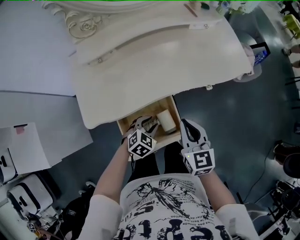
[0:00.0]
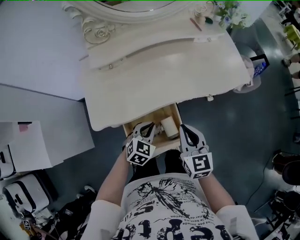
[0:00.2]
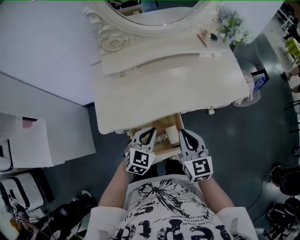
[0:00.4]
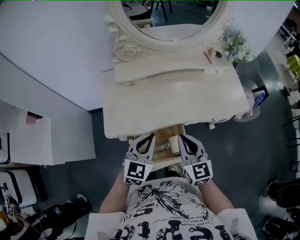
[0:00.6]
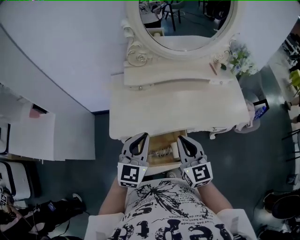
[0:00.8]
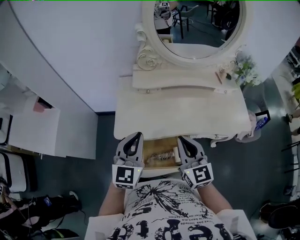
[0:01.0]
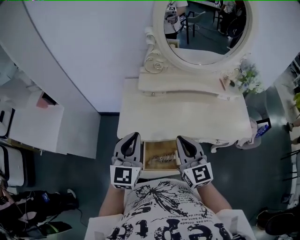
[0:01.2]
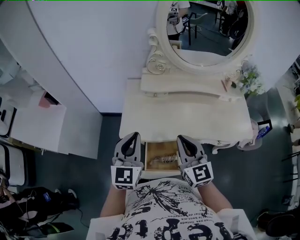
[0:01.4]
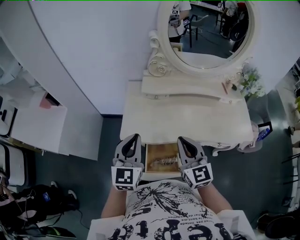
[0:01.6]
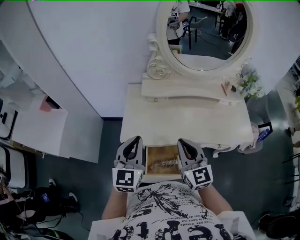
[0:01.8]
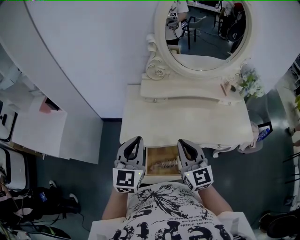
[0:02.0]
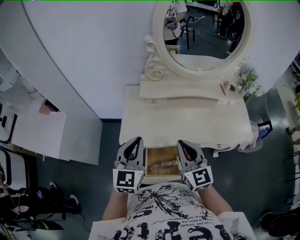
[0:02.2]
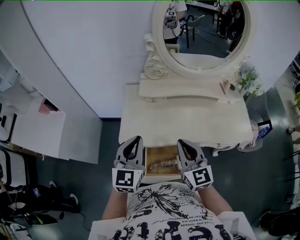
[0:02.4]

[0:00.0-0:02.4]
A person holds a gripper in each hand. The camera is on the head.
0:00.0 to 0:01.2: The right gripper moves upward, some 20 cm, and turns by some 30 degrees, while the left gripper heads upward, covering roughly 35 cm, points its fingers some 50 degrees further upward, and closes.
0:01.2 to 0:02.4: Both grippers stay about where they are.

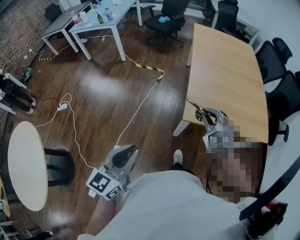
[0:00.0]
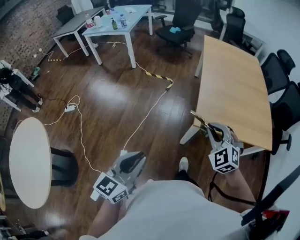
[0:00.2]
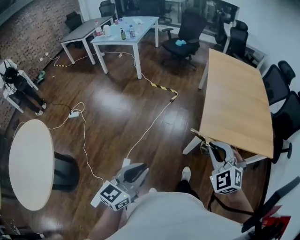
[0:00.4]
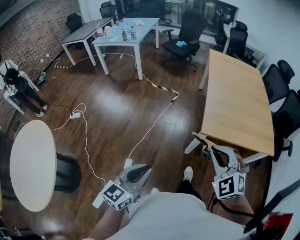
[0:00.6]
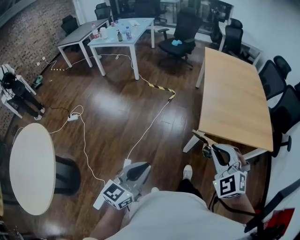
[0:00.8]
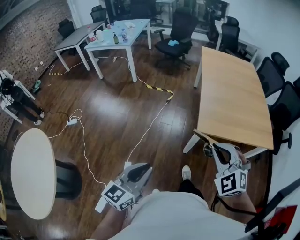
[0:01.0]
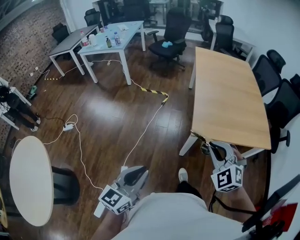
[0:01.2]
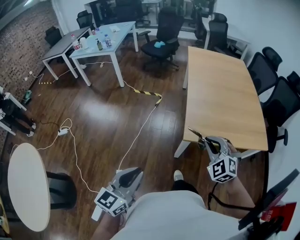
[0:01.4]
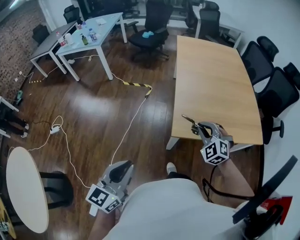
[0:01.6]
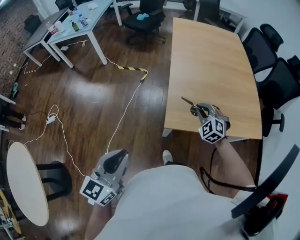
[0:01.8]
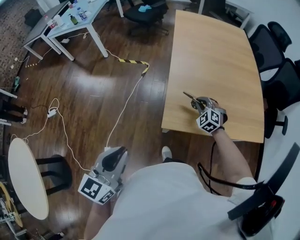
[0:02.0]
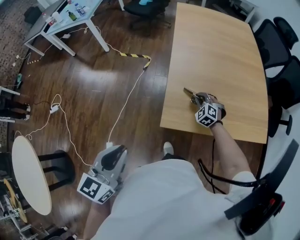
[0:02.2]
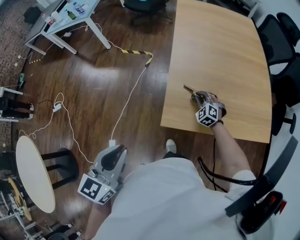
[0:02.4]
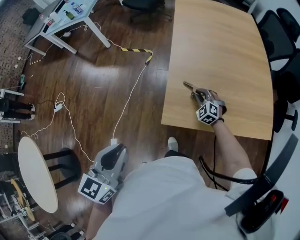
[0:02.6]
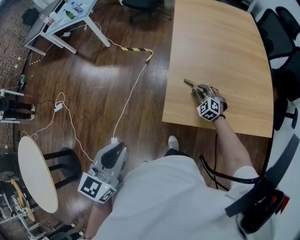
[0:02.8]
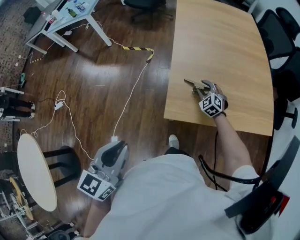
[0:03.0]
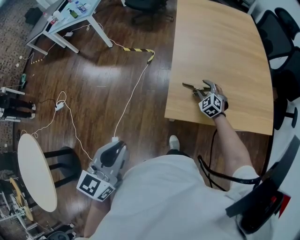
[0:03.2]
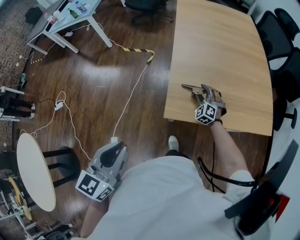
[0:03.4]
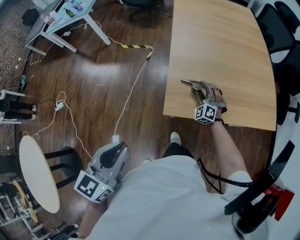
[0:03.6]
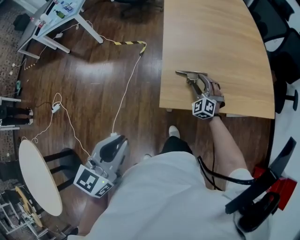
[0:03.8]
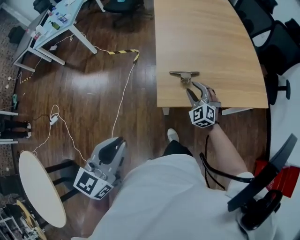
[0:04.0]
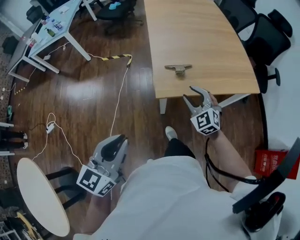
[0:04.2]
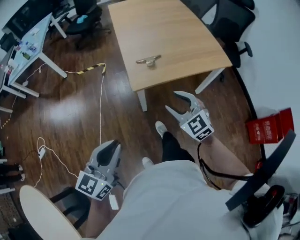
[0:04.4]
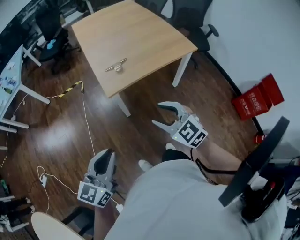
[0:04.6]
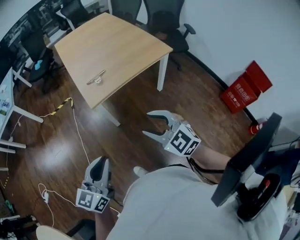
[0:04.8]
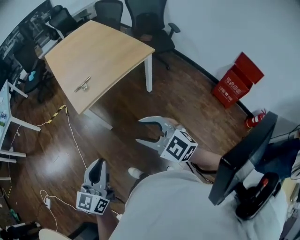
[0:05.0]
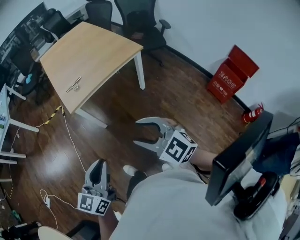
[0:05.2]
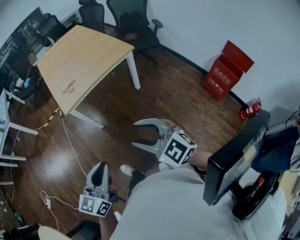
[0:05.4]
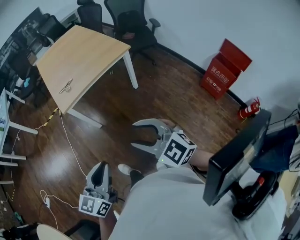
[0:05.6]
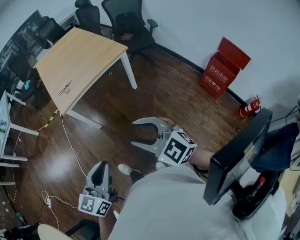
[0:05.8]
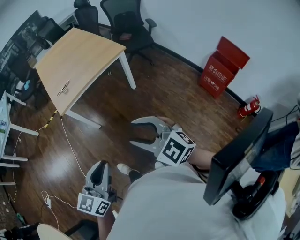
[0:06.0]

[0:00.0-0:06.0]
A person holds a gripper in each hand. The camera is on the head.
0:00.0 to 0:01.6: The left gripper goes backward and returns, about 10 cm each way; the right gripper travels backward and back again, about 20 cm each way.
0:01.6 to 0:03.0: The left gripper heads forward, covering roughly 5 cm; the right gripper shifts approximately 25 cm downward and forward, and opens.
0:03.0 to 0:04.4: The right gripper moves backward and upward, about 35 cm, and rotates approximately 30 degrees, while the left gripper goes about 10 cm backward, and turns by some 30 degrees.
0:04.4 to 0:06.0: The right gripper heads backward and to the right, covering about 35 cm; the left gripper is displaced to the right and backward by about 30 cm.

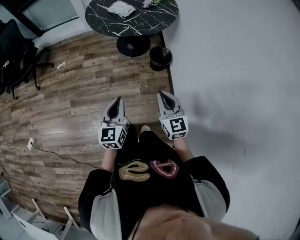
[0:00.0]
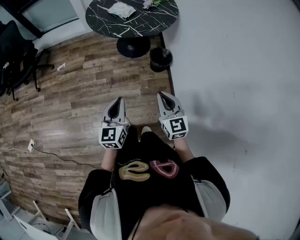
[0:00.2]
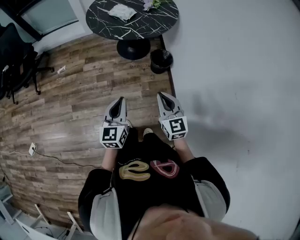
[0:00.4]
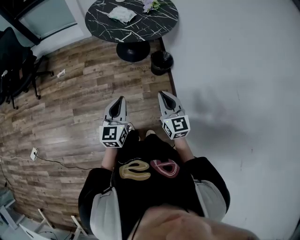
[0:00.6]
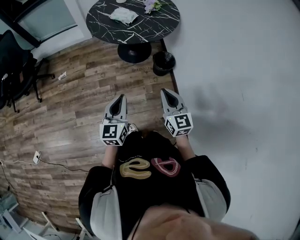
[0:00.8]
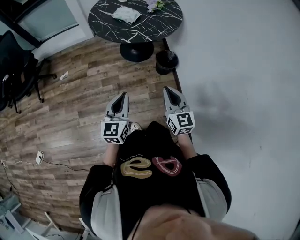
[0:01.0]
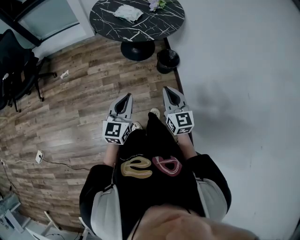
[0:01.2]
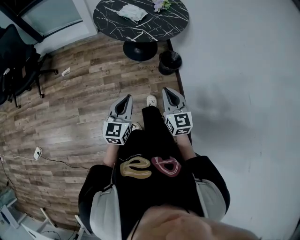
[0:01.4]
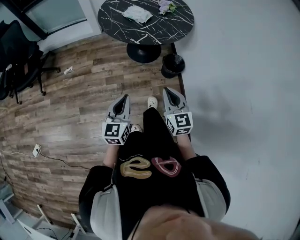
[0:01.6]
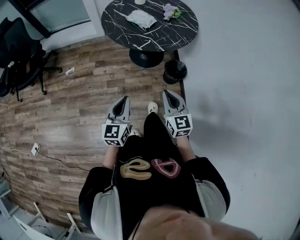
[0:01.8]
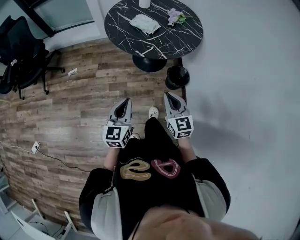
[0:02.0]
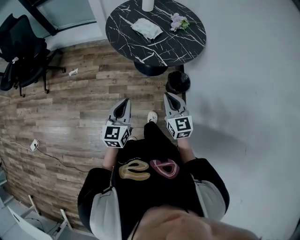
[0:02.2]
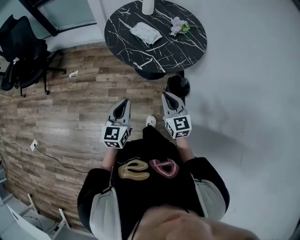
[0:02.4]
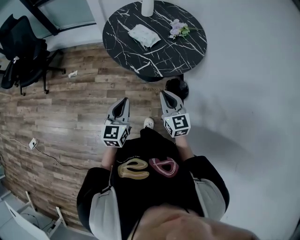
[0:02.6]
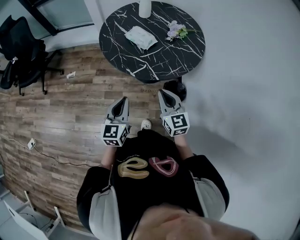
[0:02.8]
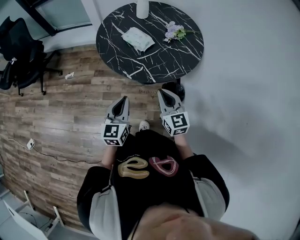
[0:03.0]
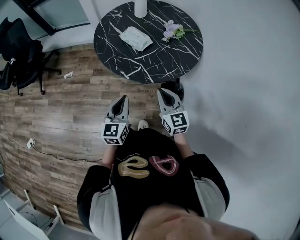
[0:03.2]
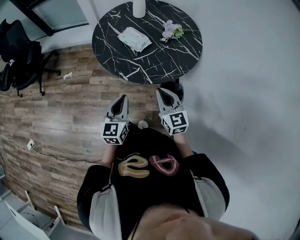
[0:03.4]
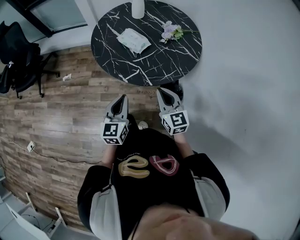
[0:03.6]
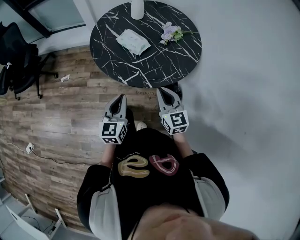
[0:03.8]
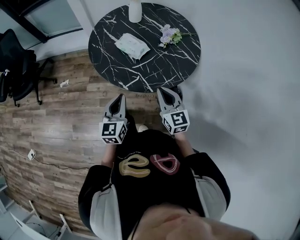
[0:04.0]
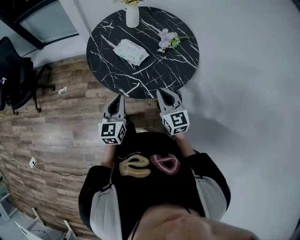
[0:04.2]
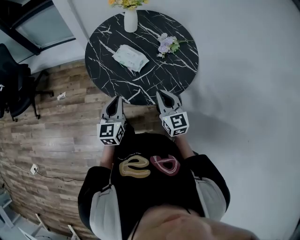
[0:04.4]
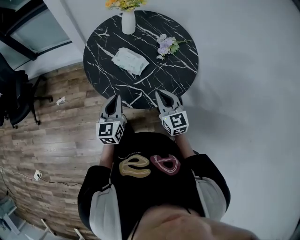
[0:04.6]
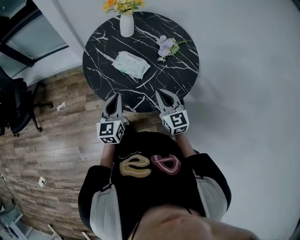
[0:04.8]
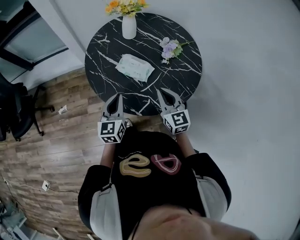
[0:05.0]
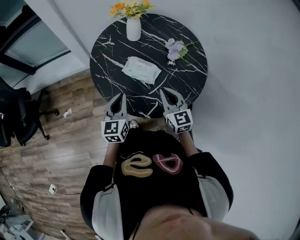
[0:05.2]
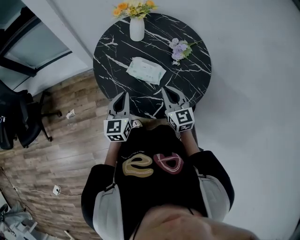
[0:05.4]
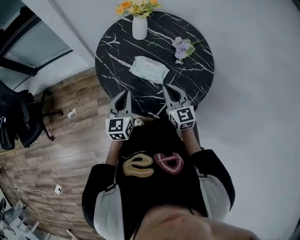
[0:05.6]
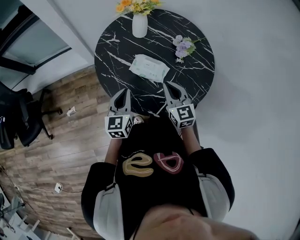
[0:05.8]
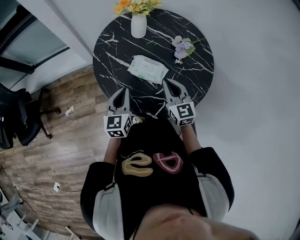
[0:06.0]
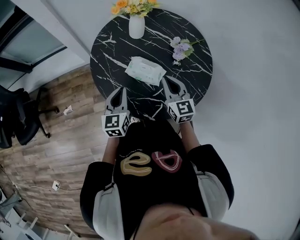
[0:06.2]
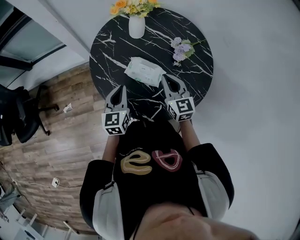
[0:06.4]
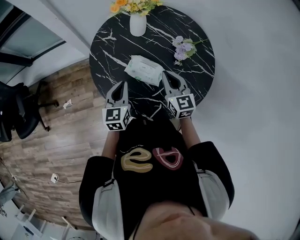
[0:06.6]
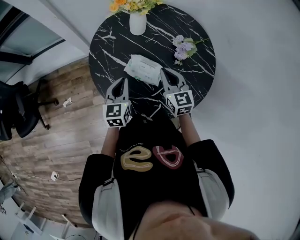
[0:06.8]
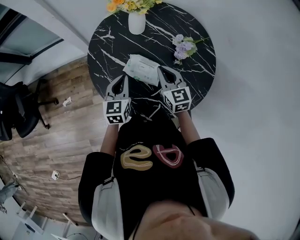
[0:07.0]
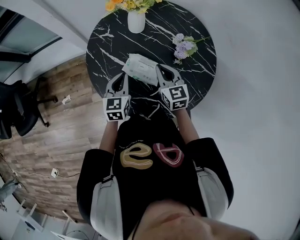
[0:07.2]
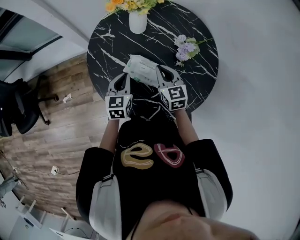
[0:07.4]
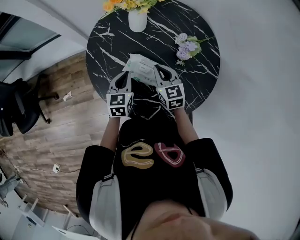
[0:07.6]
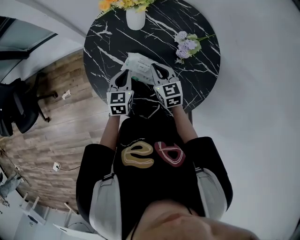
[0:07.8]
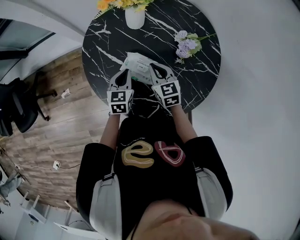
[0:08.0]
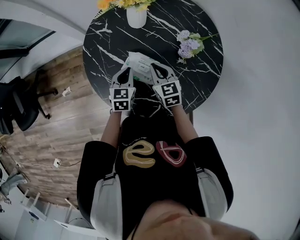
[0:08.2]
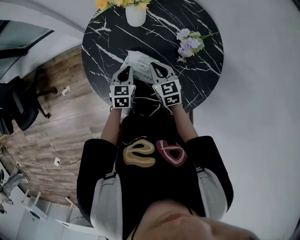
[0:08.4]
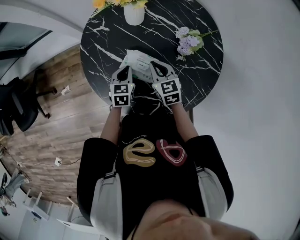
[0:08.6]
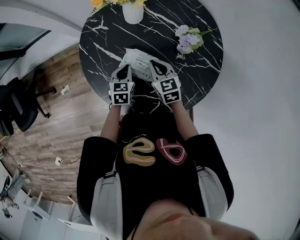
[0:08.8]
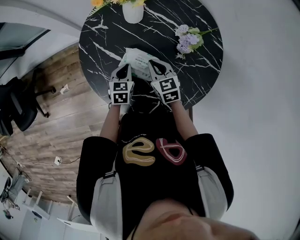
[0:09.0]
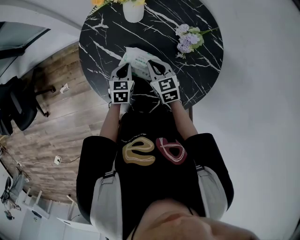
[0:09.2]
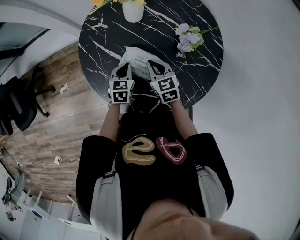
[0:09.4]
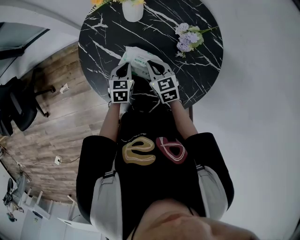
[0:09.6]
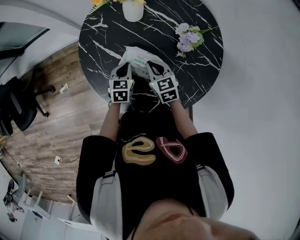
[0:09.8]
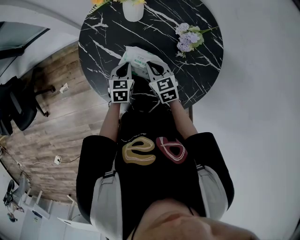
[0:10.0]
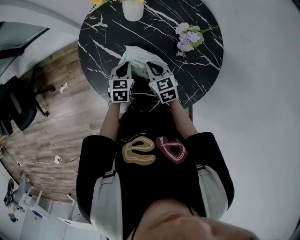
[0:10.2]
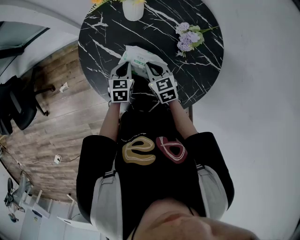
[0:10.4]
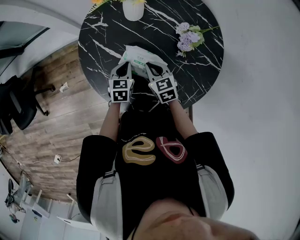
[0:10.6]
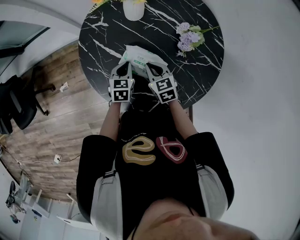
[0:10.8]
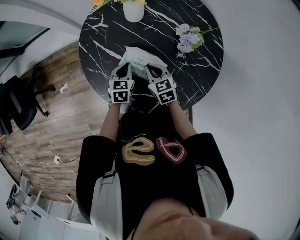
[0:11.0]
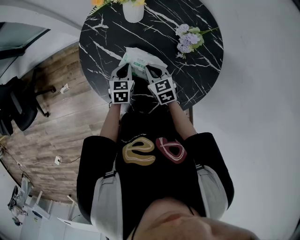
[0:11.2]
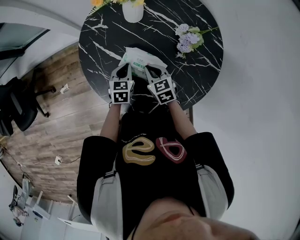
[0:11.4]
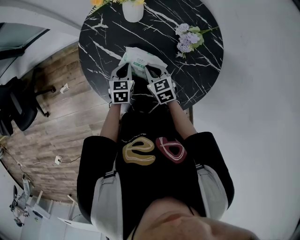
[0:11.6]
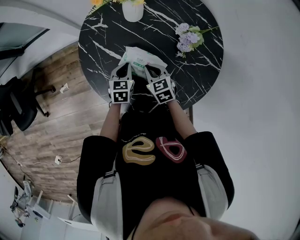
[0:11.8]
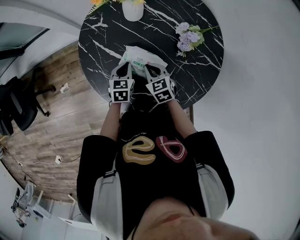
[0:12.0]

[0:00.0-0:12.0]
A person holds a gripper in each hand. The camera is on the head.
0:00.0 to 0:01.6: The grippers both shift to the left and forward by some 15 cm.
0:01.6 to 0:03.0: The left gripper is displaced forward and to the right by roughly 25 cm. The right gripper shifts roughly 25 cm forward.
0:03.0 to 0:04.4: The two grippers go about 15 cm forward.
0:04.4 to 0:06.0: The grippers both shift forward and to the left by roughly 20 cm.
0:06.0 to 0:07.6: The left gripper is displaced forward, downward and to the right by approximately 15 cm, while the right gripper heads forward and downward, covering about 15 cm.
0:07.6 to 0:09.0: The left gripper travels downward by some 10 cm, while the right gripper is displaced downward by roughly 5 cm.
0:09.0 to 0:12.0: There are only small adjustments of the grippers.

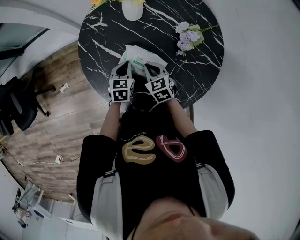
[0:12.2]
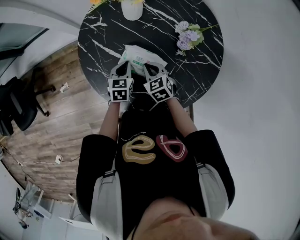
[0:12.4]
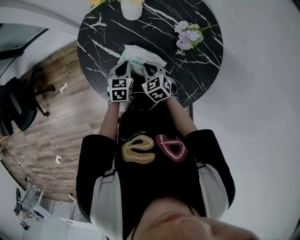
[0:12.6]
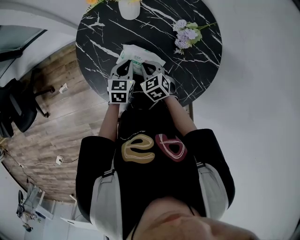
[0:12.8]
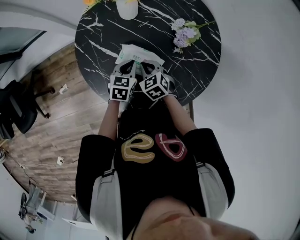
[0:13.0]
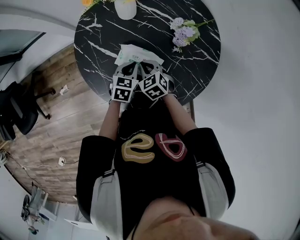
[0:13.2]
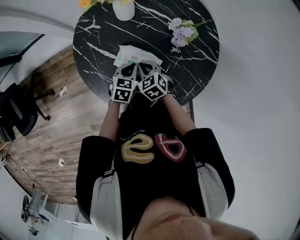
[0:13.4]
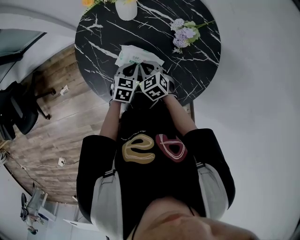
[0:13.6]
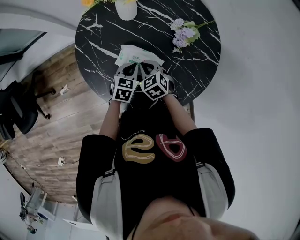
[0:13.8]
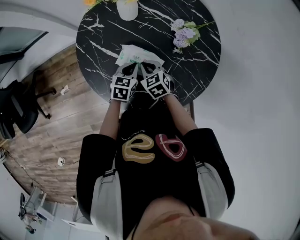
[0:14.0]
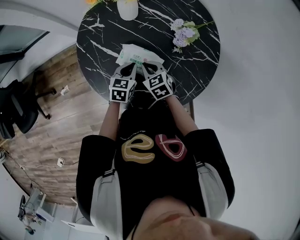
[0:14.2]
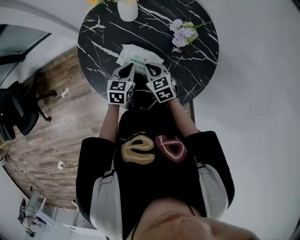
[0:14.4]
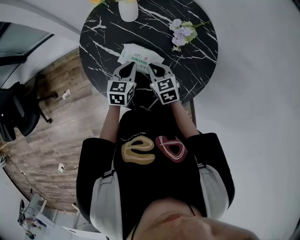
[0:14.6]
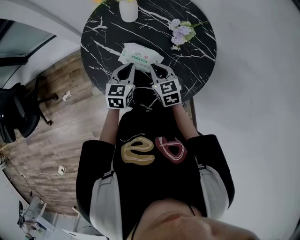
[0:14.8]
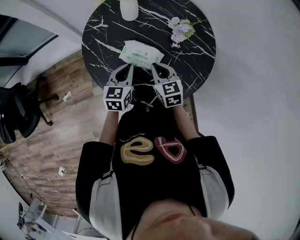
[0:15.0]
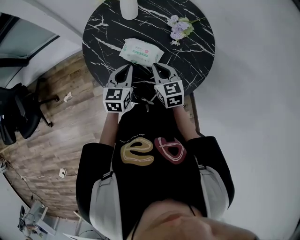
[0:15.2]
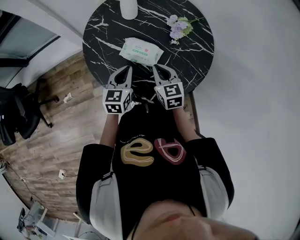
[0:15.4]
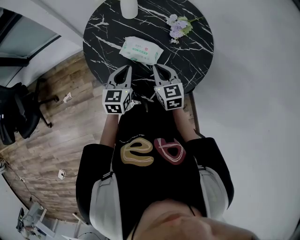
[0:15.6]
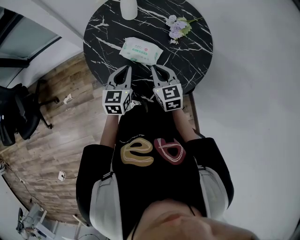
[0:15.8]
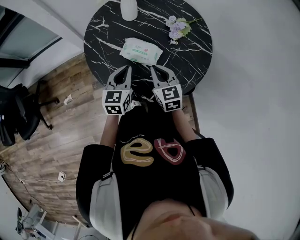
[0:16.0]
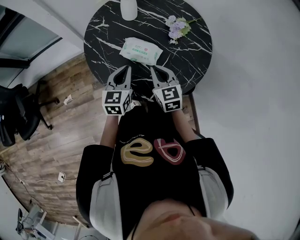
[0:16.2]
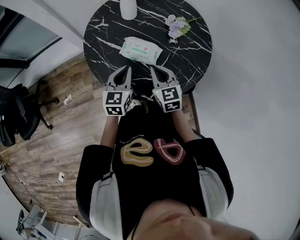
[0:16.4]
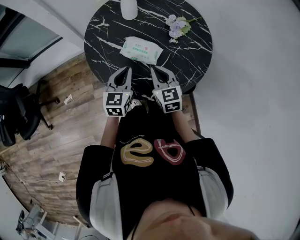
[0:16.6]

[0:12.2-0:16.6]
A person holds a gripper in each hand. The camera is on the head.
0:12.2 to 0:13.6: The left gripper shifts some 5 cm to the right.
0:13.6 to 0:15.2: The two grippers go about 15 cm upward and backward. The right gripper rotates roughly 30 degrees, while the left gripper rotates approximately 20 degrees.
0:15.2 to 0:16.6: The right gripper shifts by approximately 5 cm.
